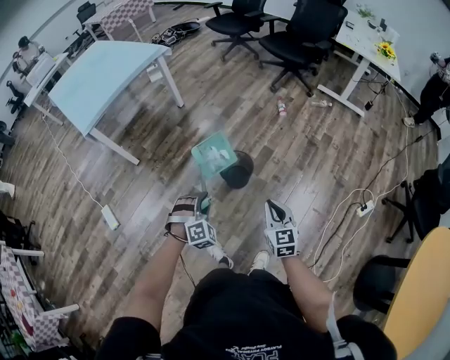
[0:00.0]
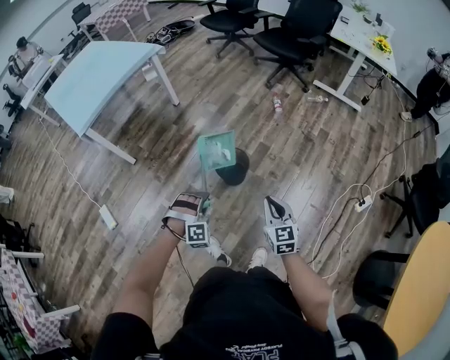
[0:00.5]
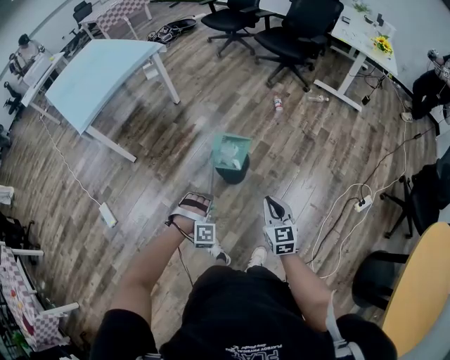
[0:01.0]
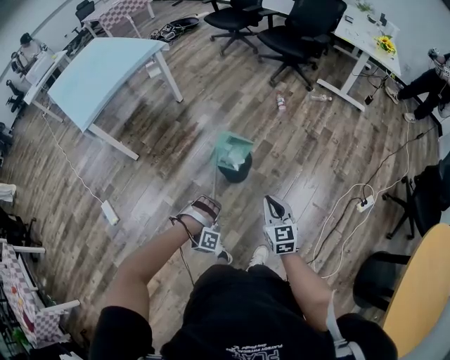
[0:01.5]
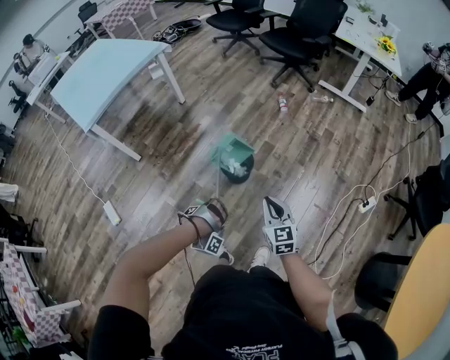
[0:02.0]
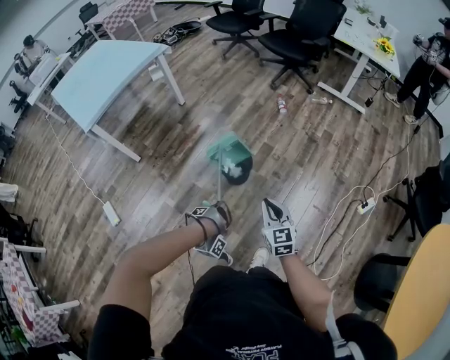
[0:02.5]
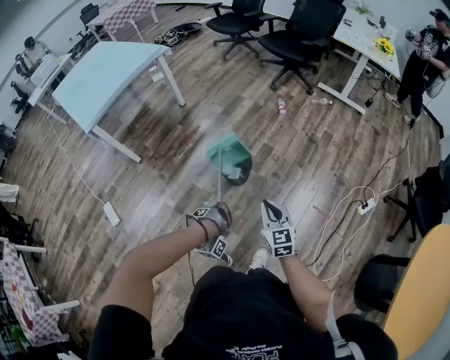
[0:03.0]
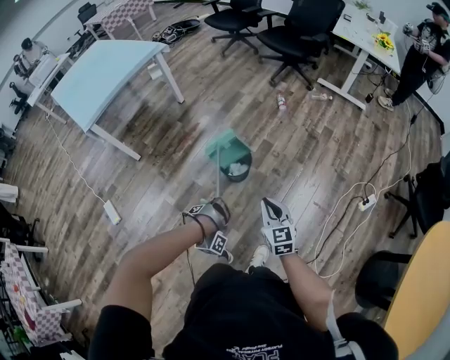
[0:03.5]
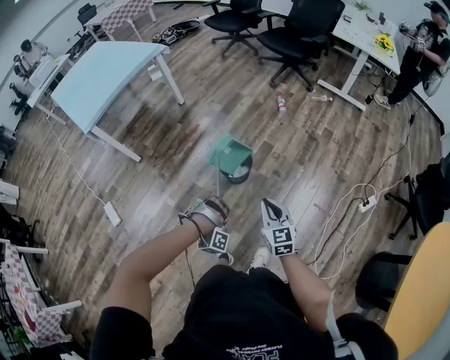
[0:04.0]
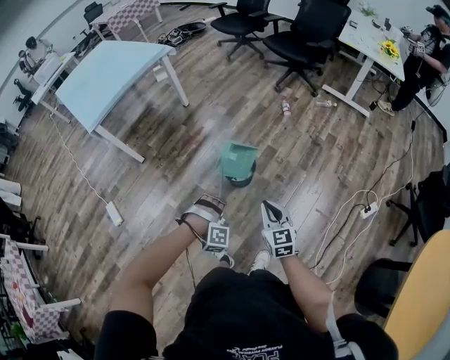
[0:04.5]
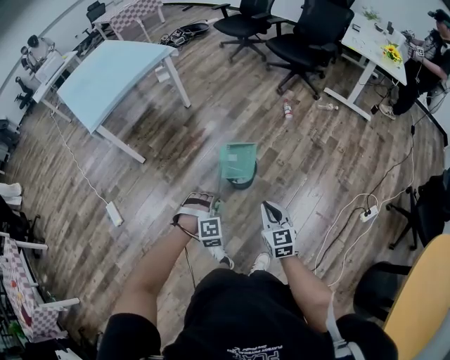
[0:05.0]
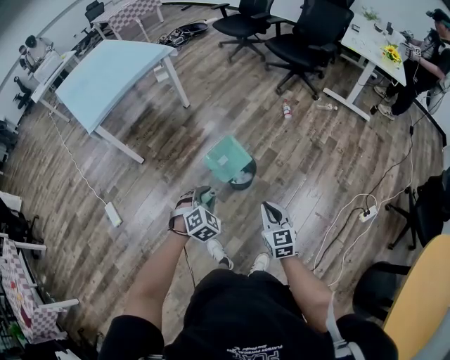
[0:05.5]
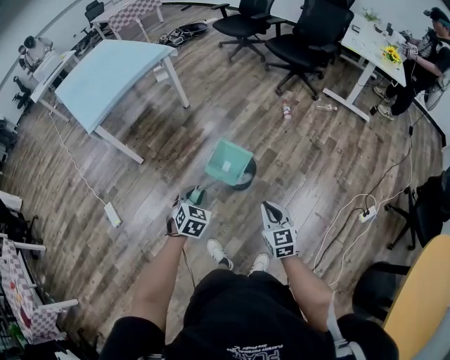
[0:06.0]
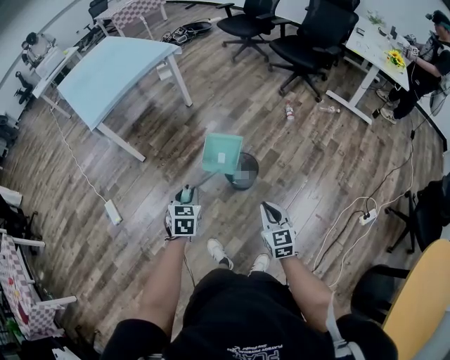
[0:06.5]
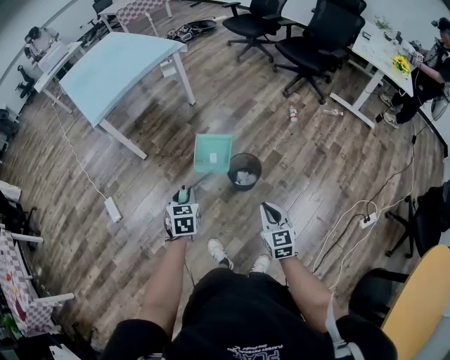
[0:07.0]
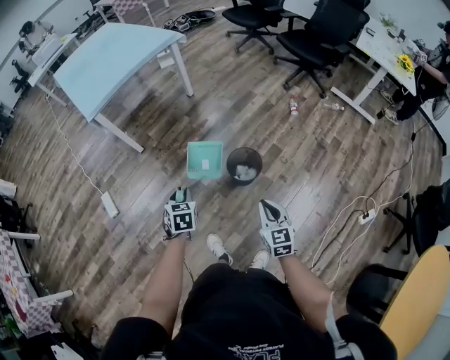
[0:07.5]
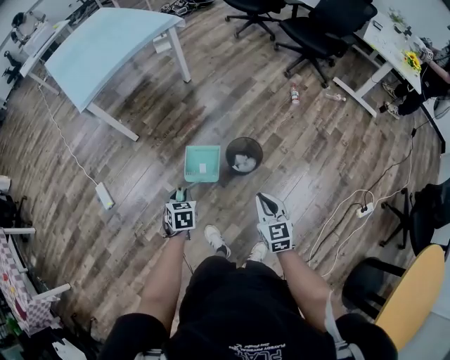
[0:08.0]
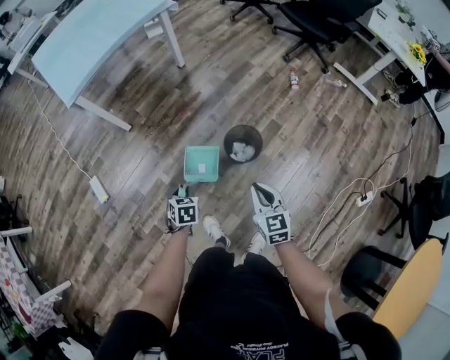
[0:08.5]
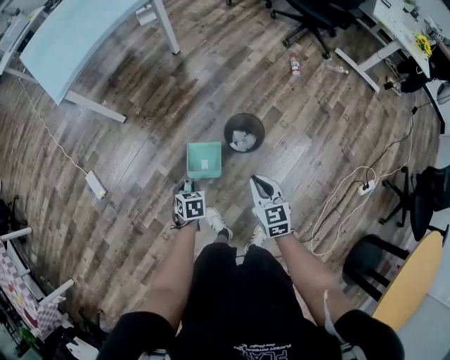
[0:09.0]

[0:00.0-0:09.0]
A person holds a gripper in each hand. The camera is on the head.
0:00.0 to 0:02.0: The left gripper is displaced backward and downward by roughly 10 cm, and rotates around the line of its fingers by roughly 80 degrees, clockwise from behind.
0:02.0 to 0:04.5: The left gripper changes its angle by roughly 40 degrees.
0:04.5 to 0:07.0: The left gripper is displaced to the left, forward and upward by approximately 20 cm, and rotates around the line of its fingers by some 110 degrees, counterclockwise from behind. The right gripper moves some 5 cm.
0:07.0 to 0:09.0: The left gripper travels downward by roughly 20 cm, and turns by roughly 20 degrees. Meanwhile the right gripper goes approximately 15 cm forward, downward and to the left.

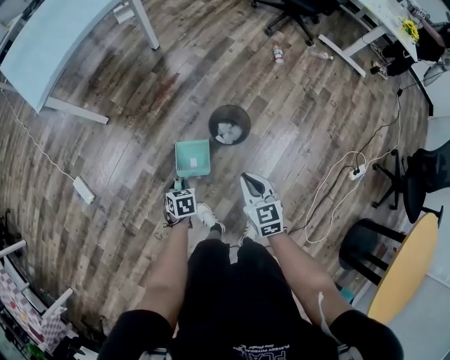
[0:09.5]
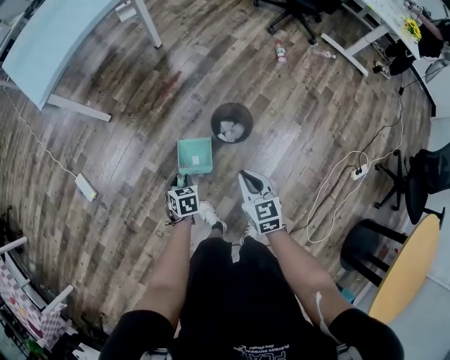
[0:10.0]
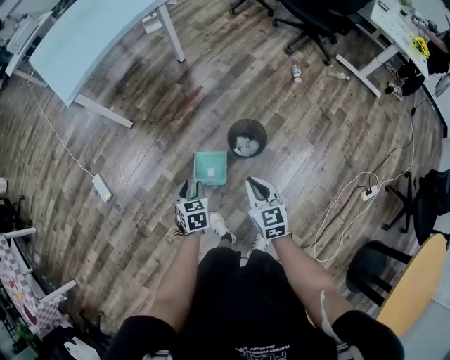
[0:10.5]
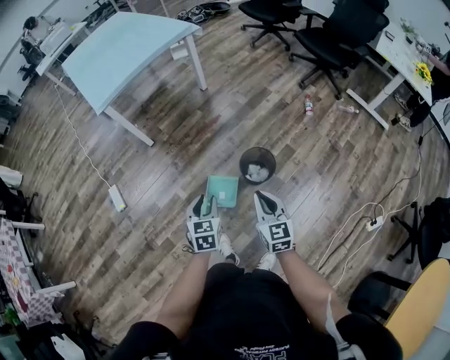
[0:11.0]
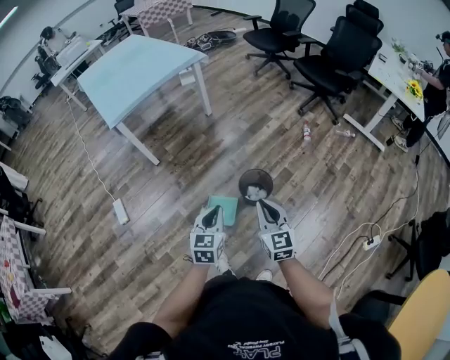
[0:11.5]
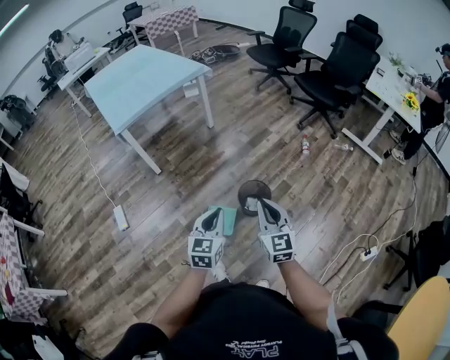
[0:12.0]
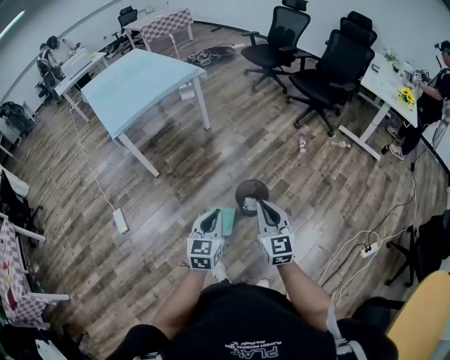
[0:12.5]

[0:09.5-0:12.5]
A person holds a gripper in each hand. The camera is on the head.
0:09.5 to 0:11.0: The left gripper travels upward by about 20 cm, and swivels about 30 degrees. The right gripper goes roughly 10 cm upward.
0:11.0 to 0:12.5: The right gripper is displaced upward by about 10 cm. Meanwhile the left gripper is displaced upward, to the right and backward by about 15 cm, turns by some 20 degrees, and closes up.

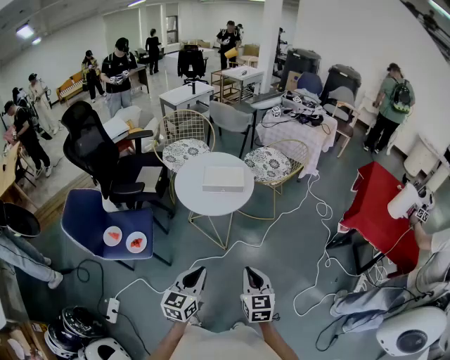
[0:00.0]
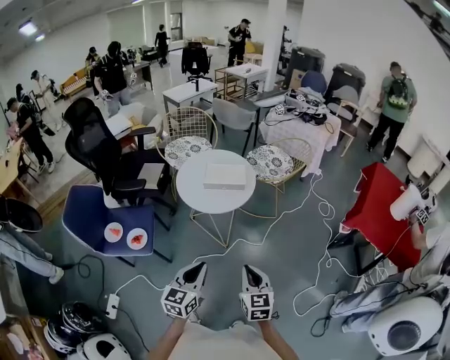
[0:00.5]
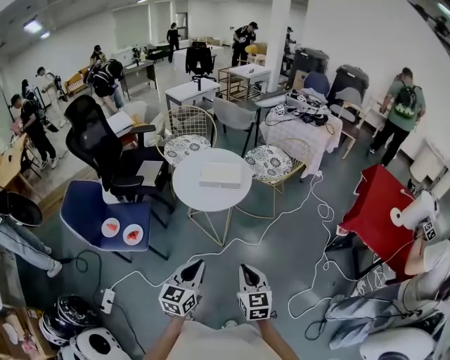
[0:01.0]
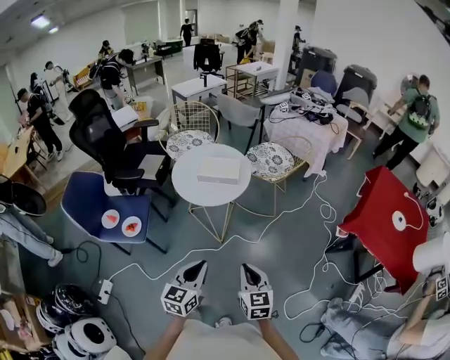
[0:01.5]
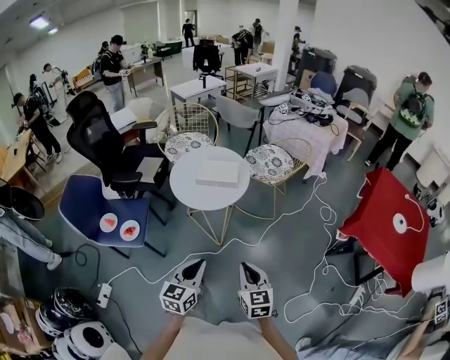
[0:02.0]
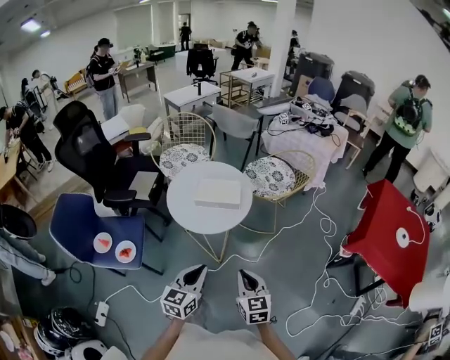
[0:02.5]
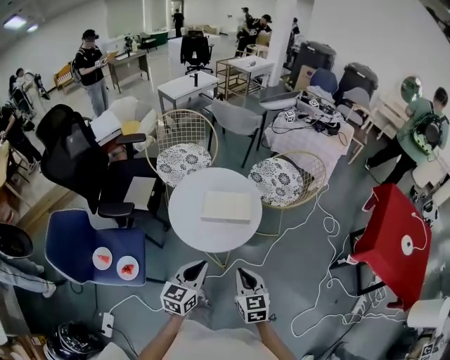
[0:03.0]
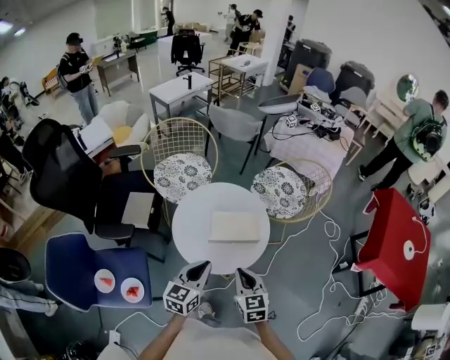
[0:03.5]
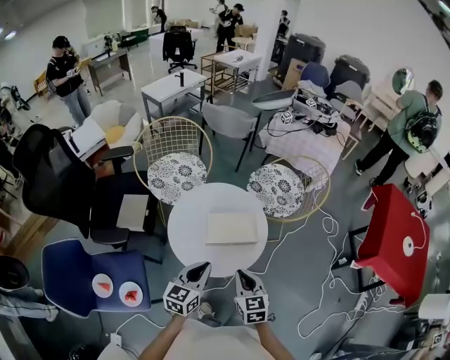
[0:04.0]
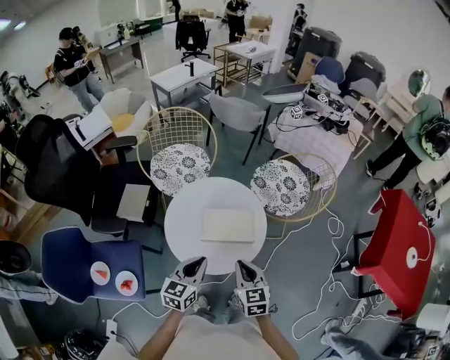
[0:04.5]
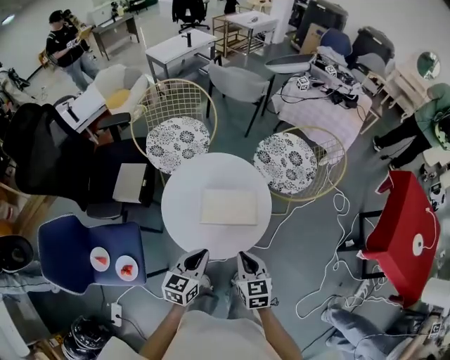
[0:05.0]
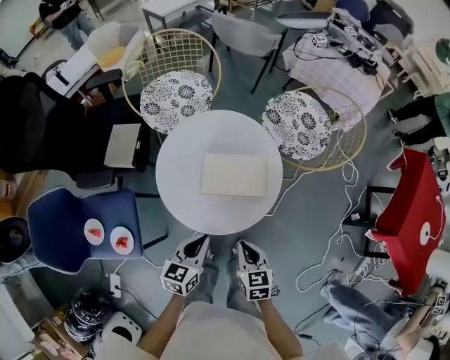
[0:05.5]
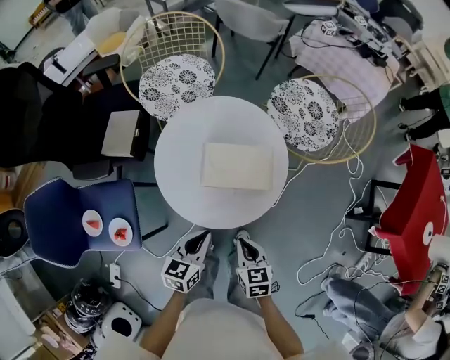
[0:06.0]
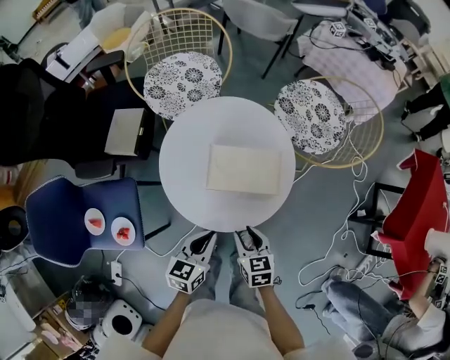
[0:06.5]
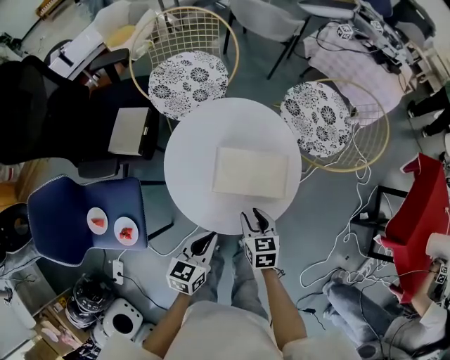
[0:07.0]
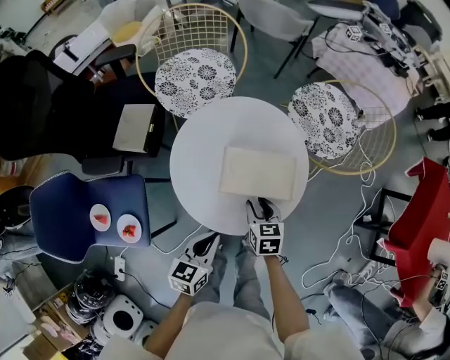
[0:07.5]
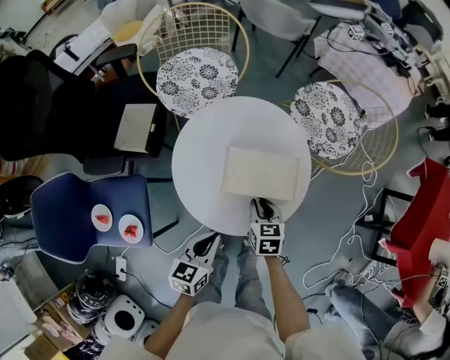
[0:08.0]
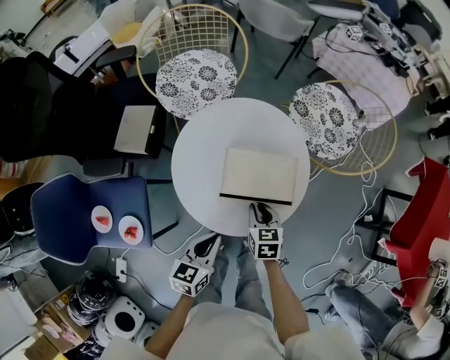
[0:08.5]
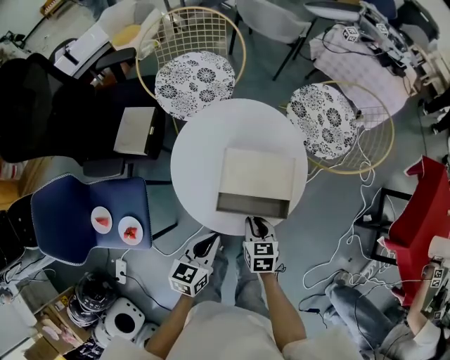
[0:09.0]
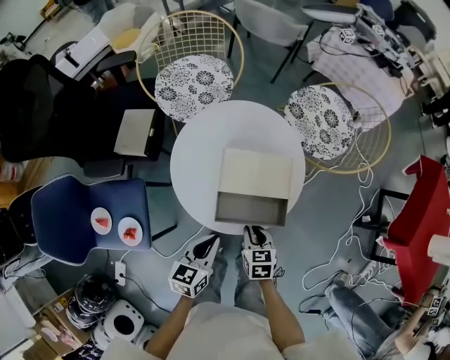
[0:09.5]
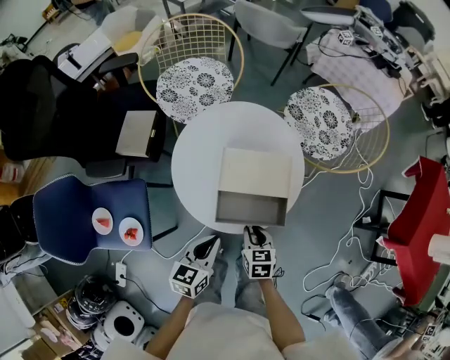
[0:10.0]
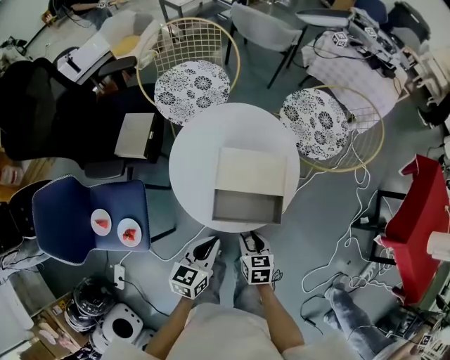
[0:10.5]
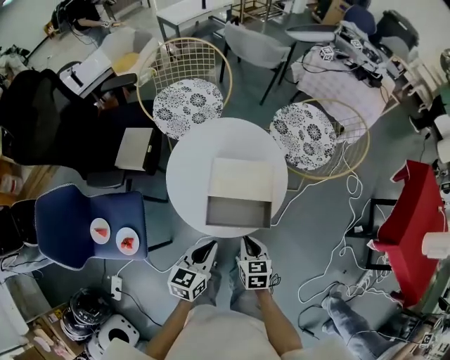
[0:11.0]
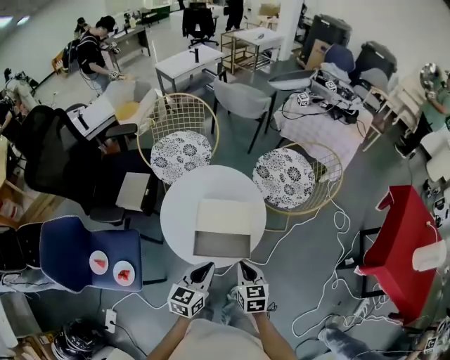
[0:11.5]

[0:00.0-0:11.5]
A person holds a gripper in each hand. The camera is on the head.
0:00.0 to 0:02.0: Both grippers travel together to the right, about 10 cm.
0:02.0 to 0:04.0: Both grippers move forward and to the left, about 40 cm.
0:04.0 to 0:06.0: The grippers both shift downward by about 15 cm. The right gripper changes its angle by roughly 20 degrees.
0:06.0 to 0:07.5: The right gripper is displaced forward by approximately 15 cm, and opens.
0:07.5 to 0:09.5: The right gripper is displaced backward by about 10 cm.
0:09.5 to 0:11.5: Both grippers travel together upward and to the right, some 15 cm.

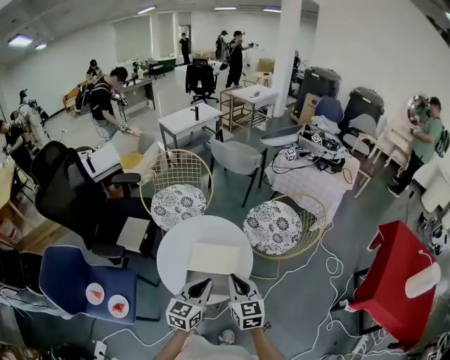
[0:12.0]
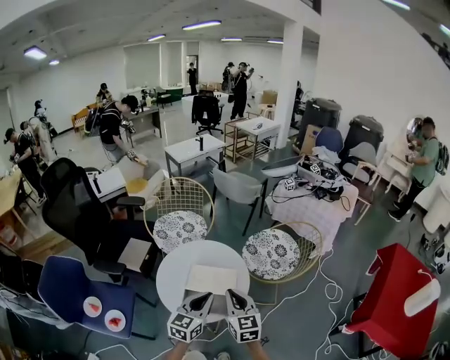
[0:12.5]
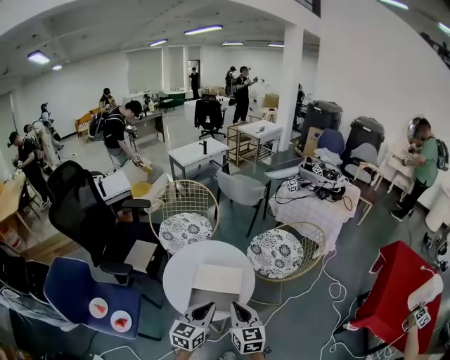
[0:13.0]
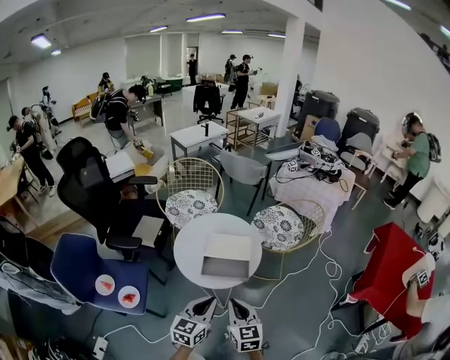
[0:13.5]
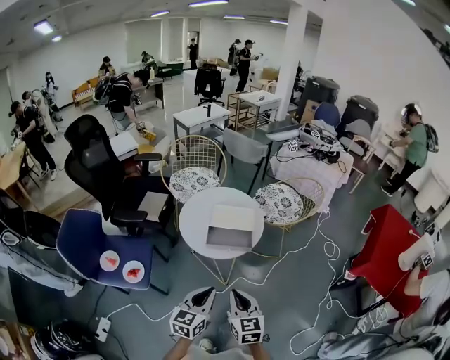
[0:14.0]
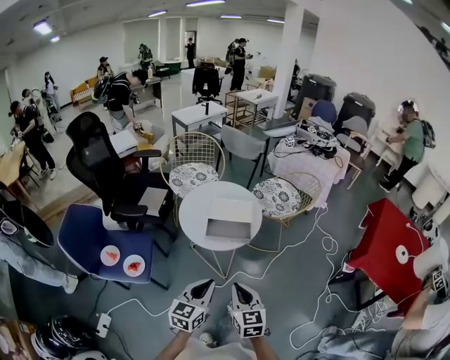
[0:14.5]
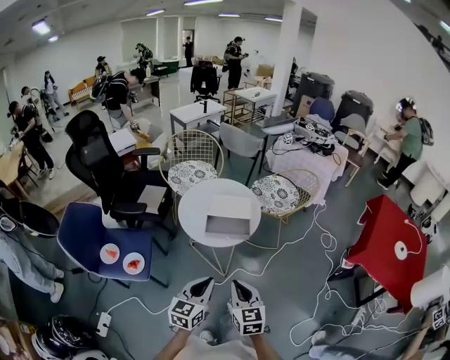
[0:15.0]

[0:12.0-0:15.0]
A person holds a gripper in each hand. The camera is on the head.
0:12.0 to 0:13.5: Both grippers travel together backward, approximately 20 cm.
0:13.5 to 0:15.0: Both grippers travel together backward, about 15 cm.
